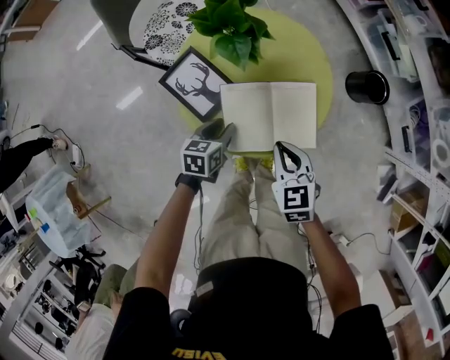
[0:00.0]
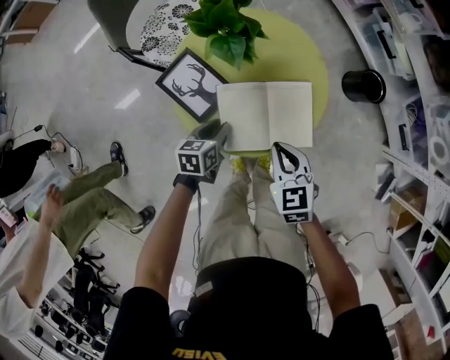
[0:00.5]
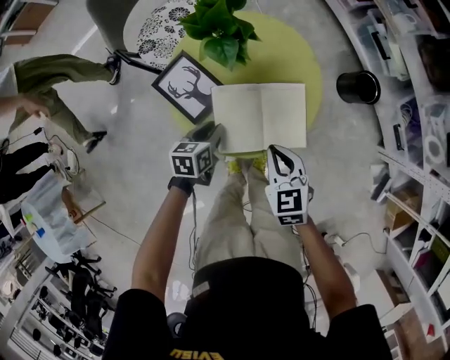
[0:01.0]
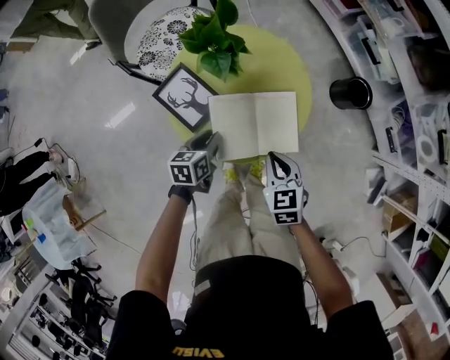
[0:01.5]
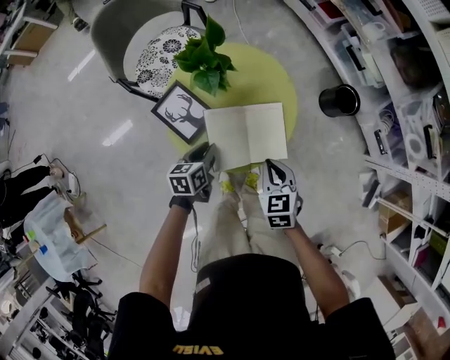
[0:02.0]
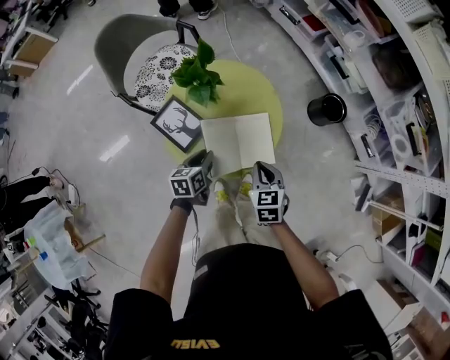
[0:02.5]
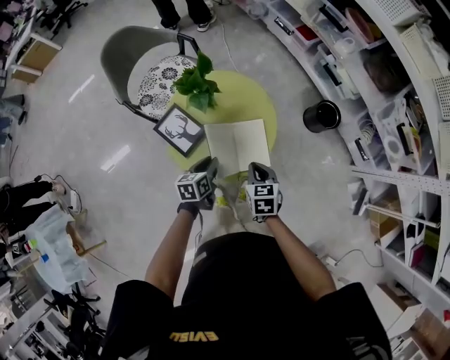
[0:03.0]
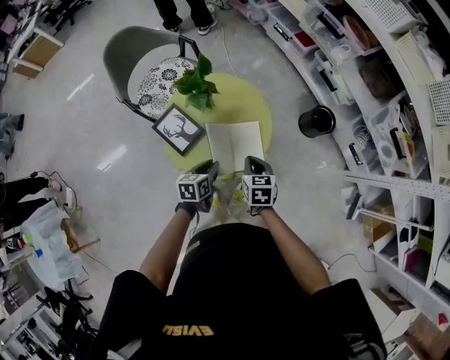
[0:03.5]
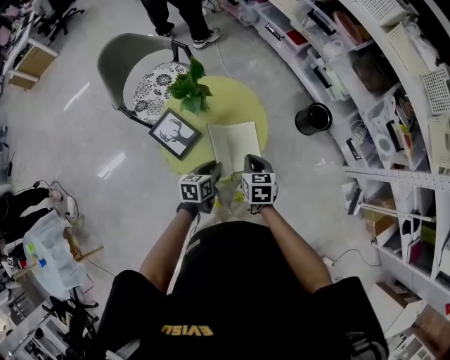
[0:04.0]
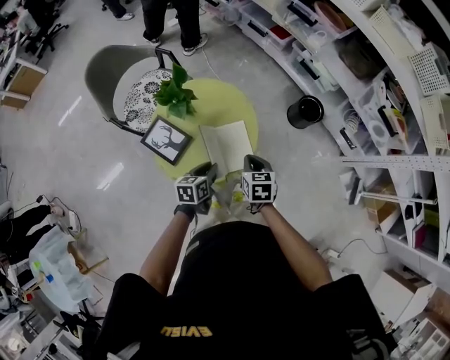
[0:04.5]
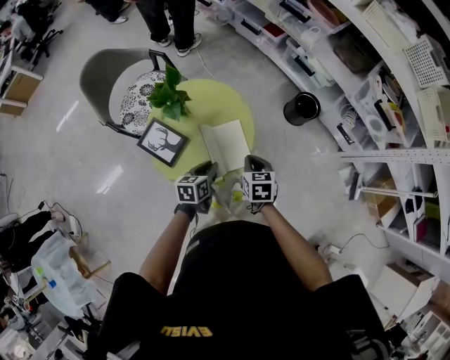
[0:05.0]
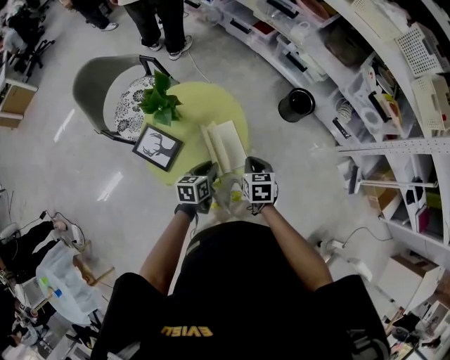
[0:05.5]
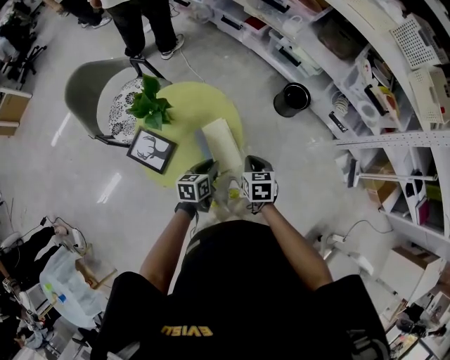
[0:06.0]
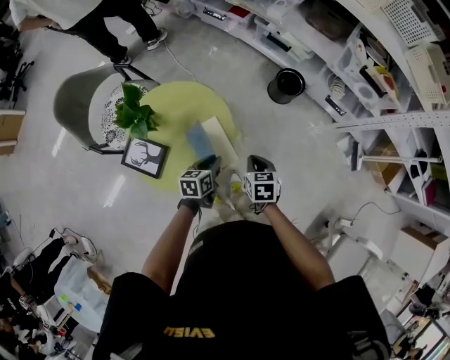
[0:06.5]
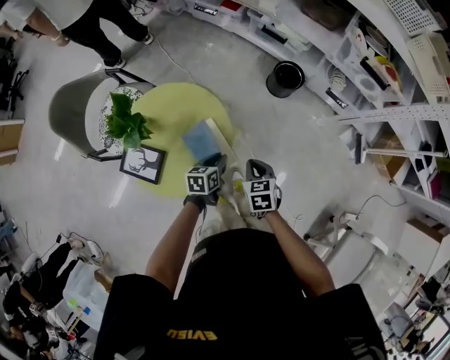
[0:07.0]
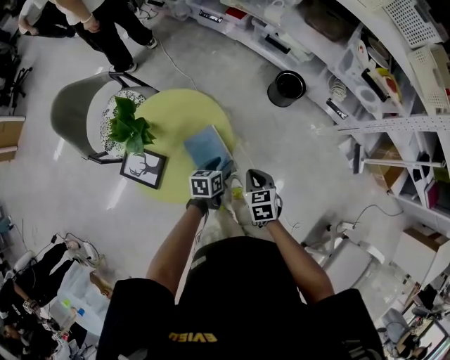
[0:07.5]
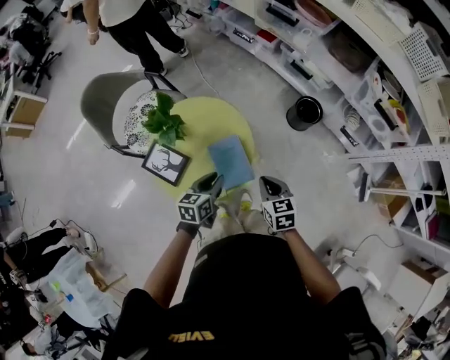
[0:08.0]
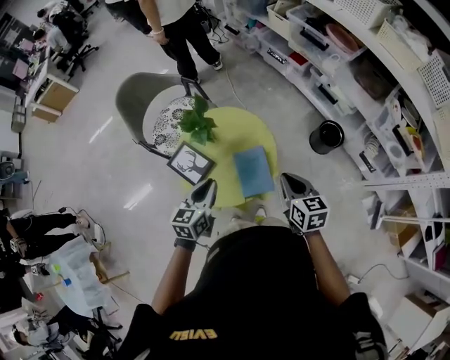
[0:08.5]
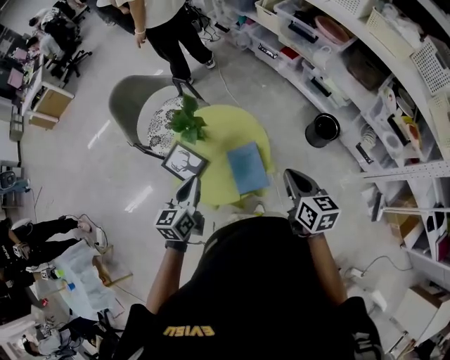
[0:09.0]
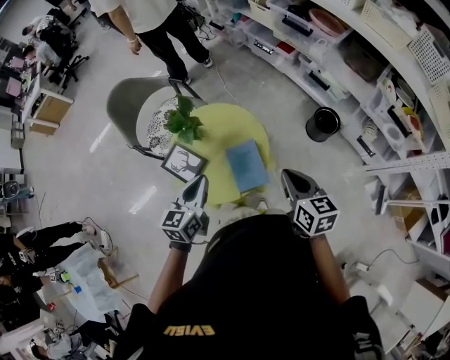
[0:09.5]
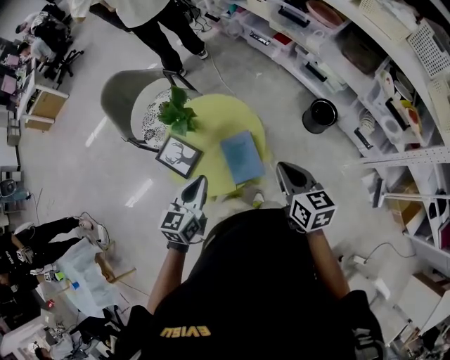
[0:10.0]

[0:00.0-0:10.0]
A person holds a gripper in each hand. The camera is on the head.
0.0 to 2.0 s: The left gripper is displaced upward by some 5 cm; the right gripper changes place by some 5 cm.
2.0 to 4.0 s: The left gripper goes roughly 10 cm to the right and upward, while the right gripper ends up some 5 cm from where it was.
4.0 to 6.0 s: Both grippers move to the right, about 10 cm.
6.0 to 8.0 s: The two grippers go approximately 5 cm upward. The left gripper opens, then closes once more.
8.0 to 10.0 s: The right gripper shifts roughly 15 cm upward, and swivels some 20 degrees, while the left gripper shifts some 15 cm upward and to the left, and changes its angle by approximately 20 degrees.

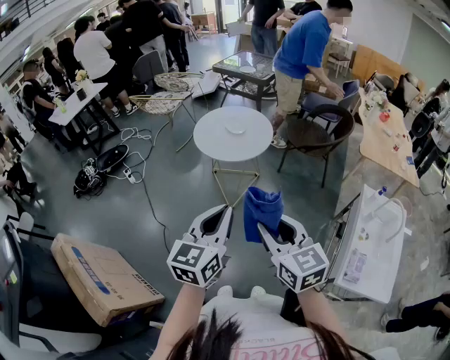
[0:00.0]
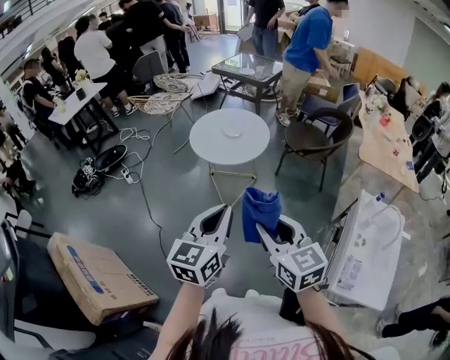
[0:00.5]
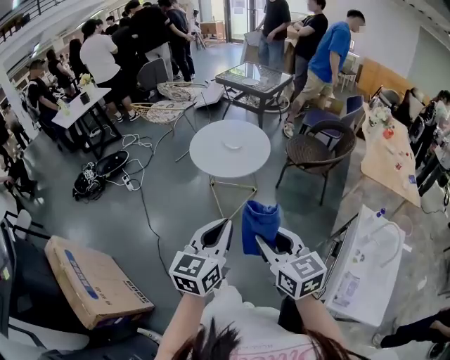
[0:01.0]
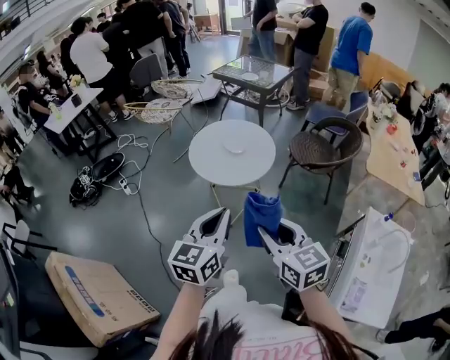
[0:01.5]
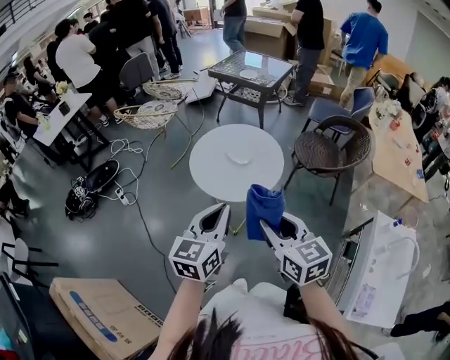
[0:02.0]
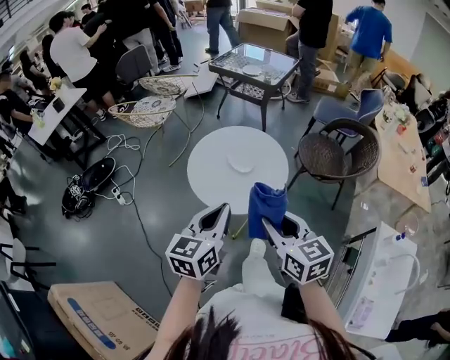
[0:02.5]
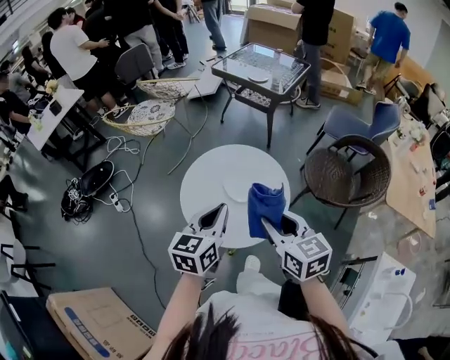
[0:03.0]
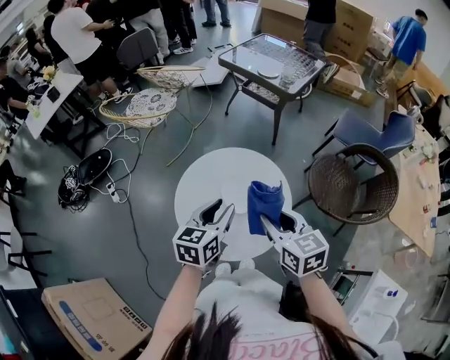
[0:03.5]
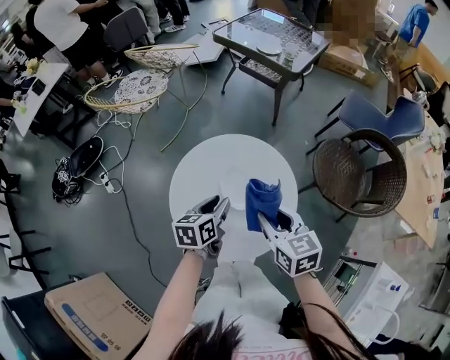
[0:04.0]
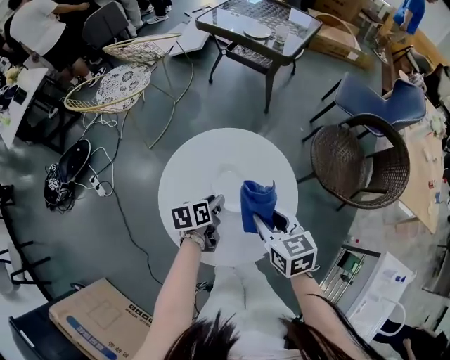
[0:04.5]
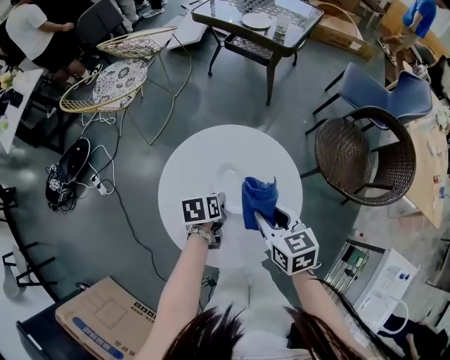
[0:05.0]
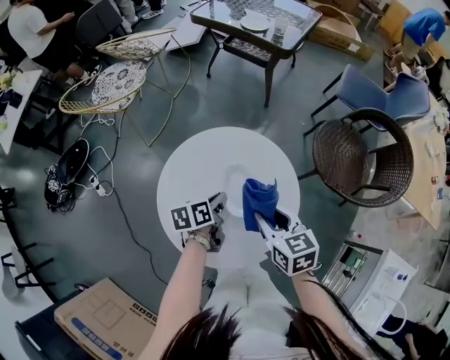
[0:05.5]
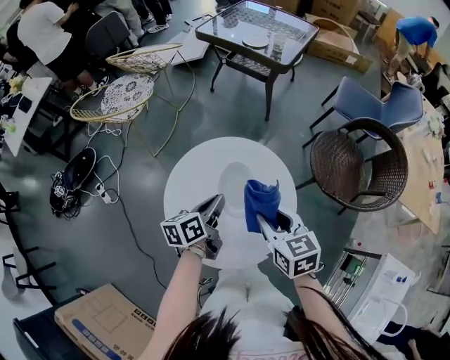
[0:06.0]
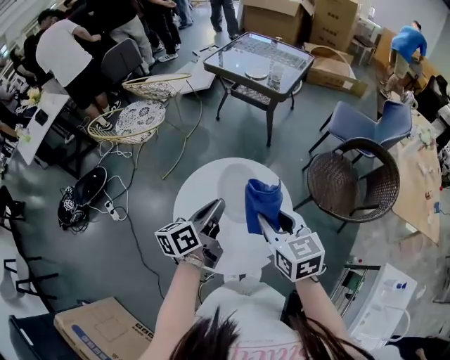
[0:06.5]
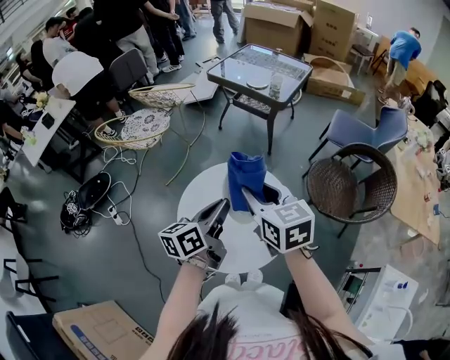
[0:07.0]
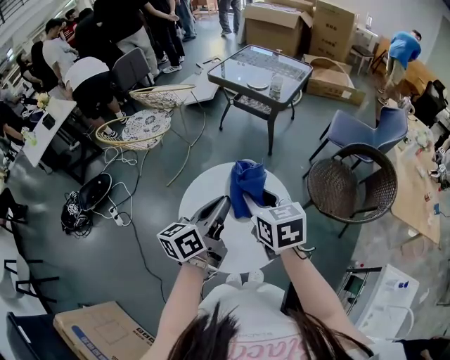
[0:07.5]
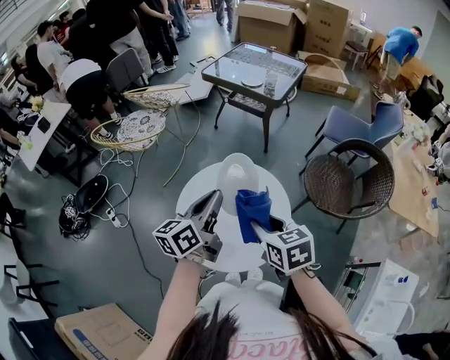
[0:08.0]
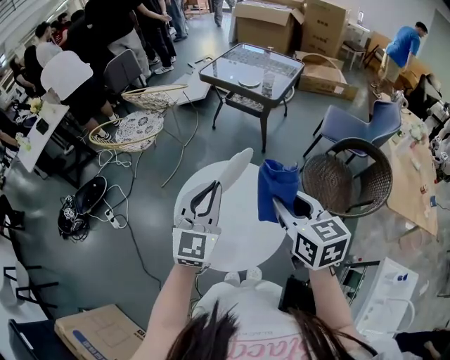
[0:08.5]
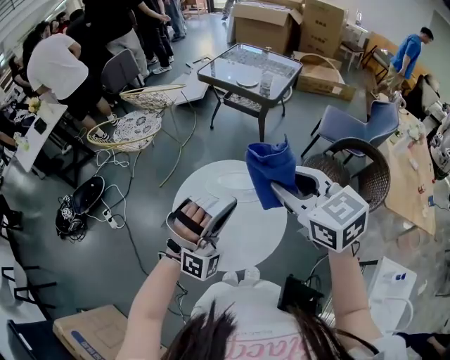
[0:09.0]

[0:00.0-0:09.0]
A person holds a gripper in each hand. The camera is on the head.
0.0 to 2.0 s: Both grippers move forward, roughly 25 cm.
2.0 to 4.5 s: The two grippers go some 50 cm forward and downward. The left gripper angles its fingers downward, by roughly 30 degrees, and opens its fingers.
4.5 to 7.0 s: Both grippers travel together upward, some 25 cm. The left gripper points its fingers approximately 40 degrees further upward, and closes its fingers.
7.0 to 9.0 s: Both grippers move upward and to the right, approximately 10 cm. The left gripper rotates around the line of its fingers by some 130 degrees, clockwise from behind.

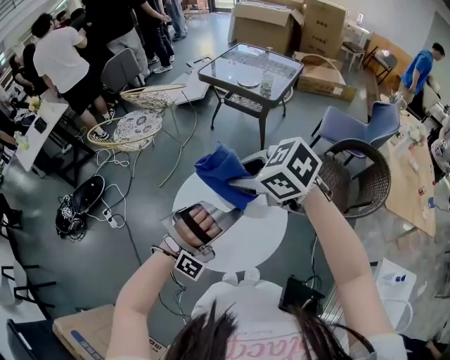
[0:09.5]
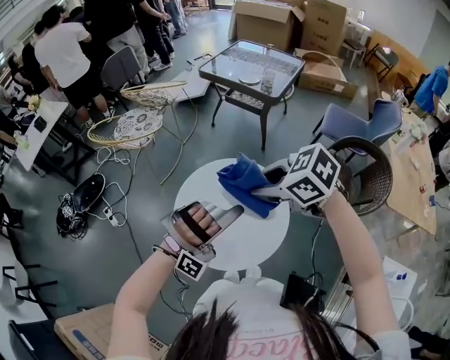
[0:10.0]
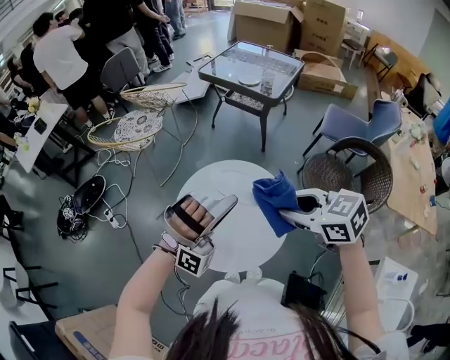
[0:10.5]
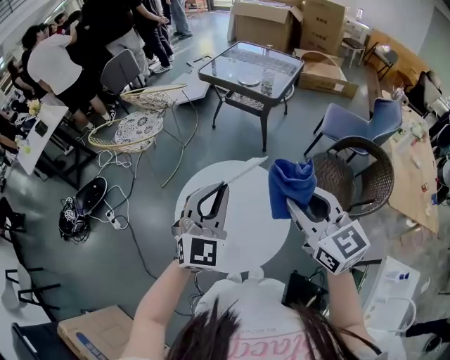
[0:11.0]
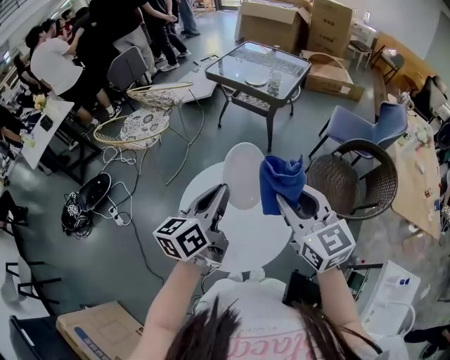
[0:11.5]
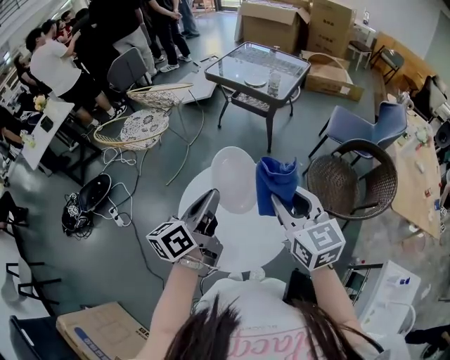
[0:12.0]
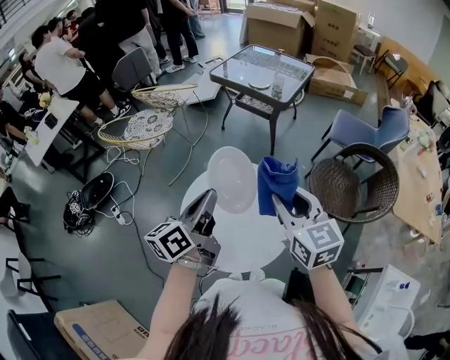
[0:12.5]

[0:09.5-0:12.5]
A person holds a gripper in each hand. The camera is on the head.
9.5 to 11.0 s: The left gripper travels forward by about 10 cm, and twists roughly 80 degrees counterclockwise, seen from behind. Meanwhile the right gripper heads to the right and backward, covering some 15 cm, and changes its angle by about 50 degrees.
11.0 to 12.5 s: The right gripper moves some 5 cm, while the left gripper is displaced to the left by some 5 cm, and rotates around the line of its fingers by roughly 80 degrees, counterclockwise from behind.

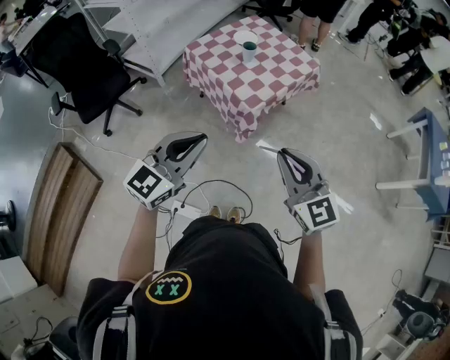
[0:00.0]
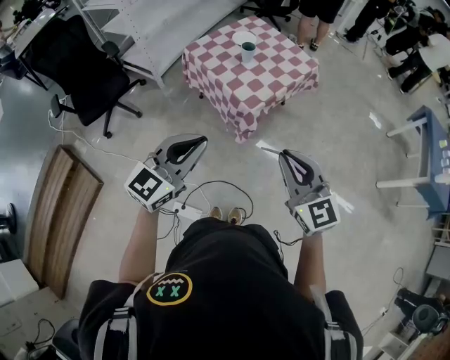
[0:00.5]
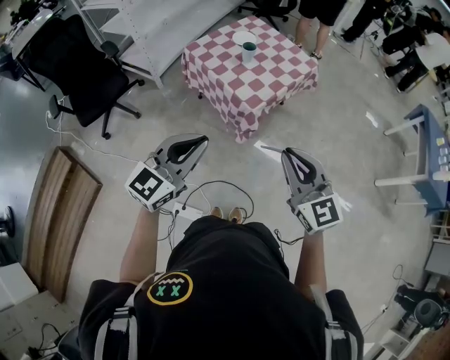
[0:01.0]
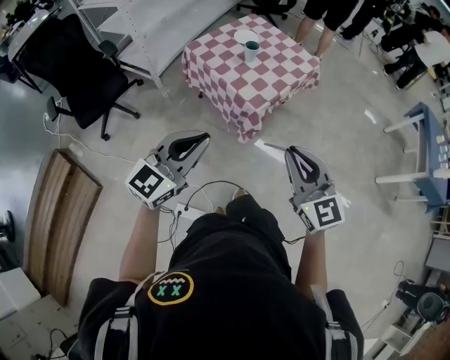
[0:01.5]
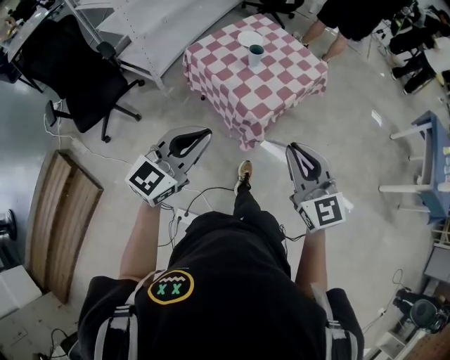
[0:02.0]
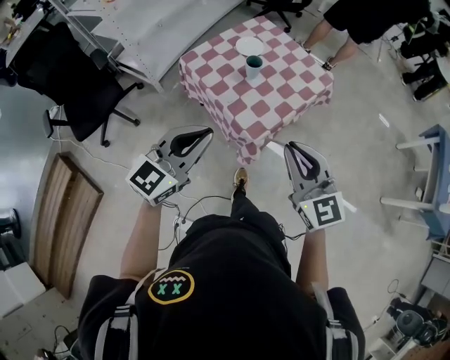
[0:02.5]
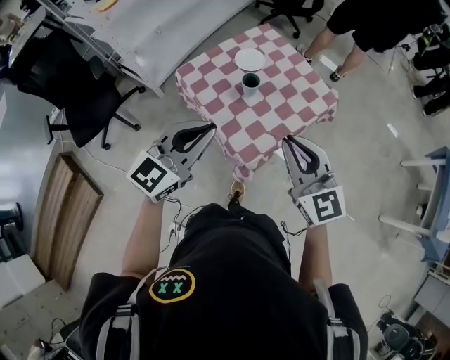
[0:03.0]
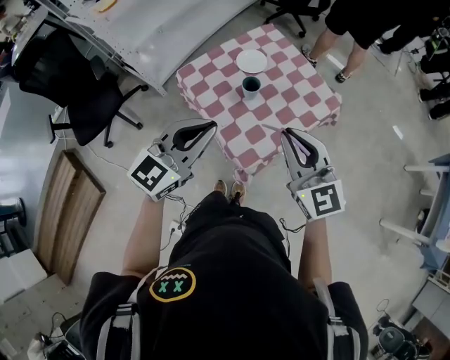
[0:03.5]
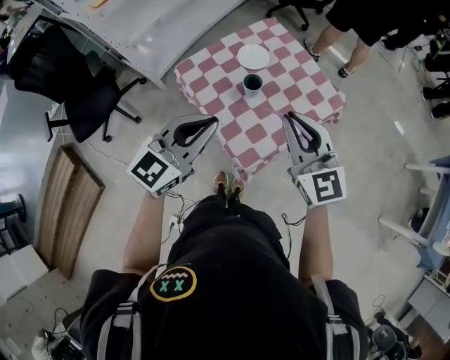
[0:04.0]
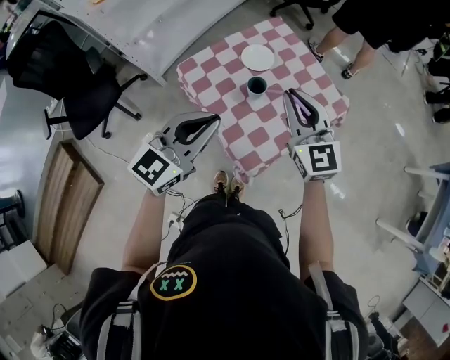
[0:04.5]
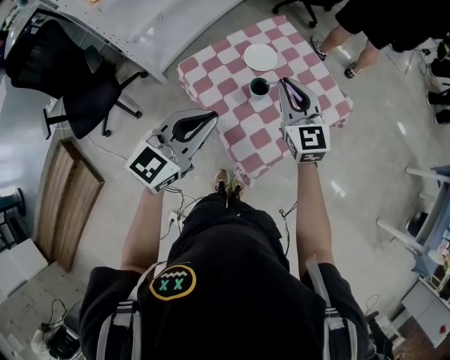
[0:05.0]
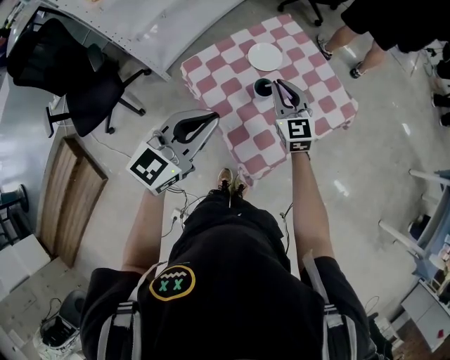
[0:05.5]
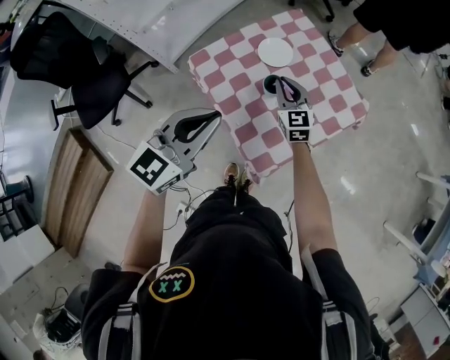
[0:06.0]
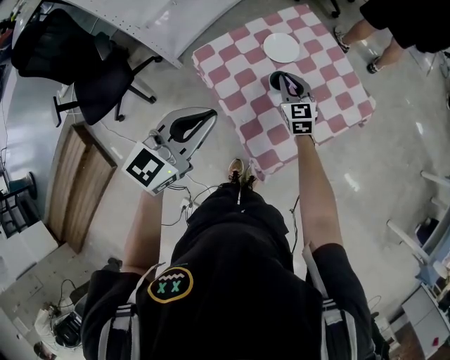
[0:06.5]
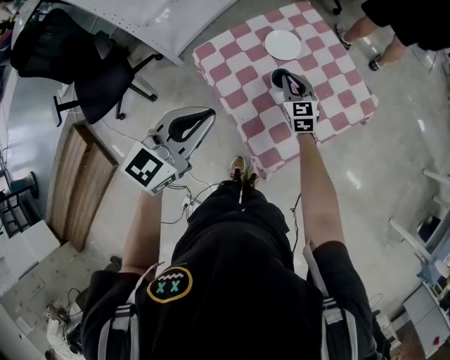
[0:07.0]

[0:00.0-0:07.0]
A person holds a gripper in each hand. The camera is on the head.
0.0 to 2.0 s: Both grippers move forward, some 10 cm.
2.0 to 3.5 s: Both grippers travel together forward, about 30 cm.
3.5 to 5.0 s: The left gripper is displaced forward by some 10 cm; the right gripper is displaced forward by roughly 20 cm.
5.0 to 7.0 s: The left gripper shifts by roughly 5 cm. The right gripper moves downward, roughly 20 cm.
